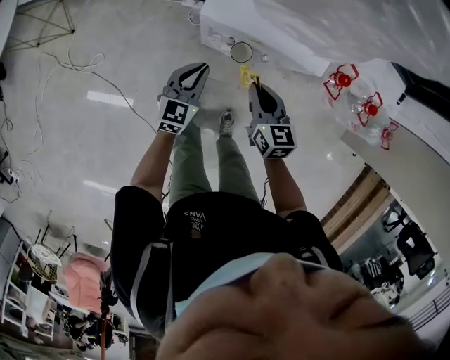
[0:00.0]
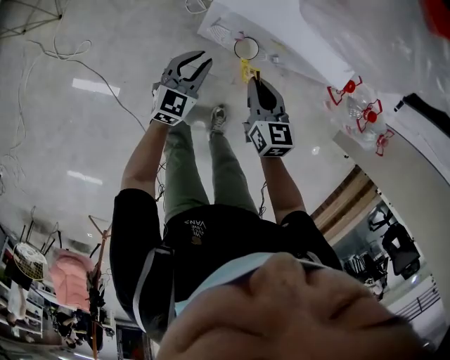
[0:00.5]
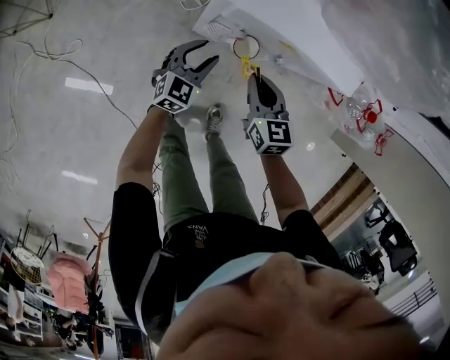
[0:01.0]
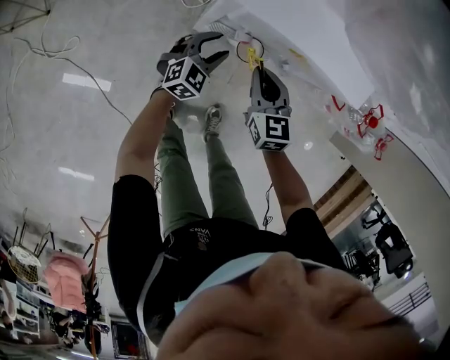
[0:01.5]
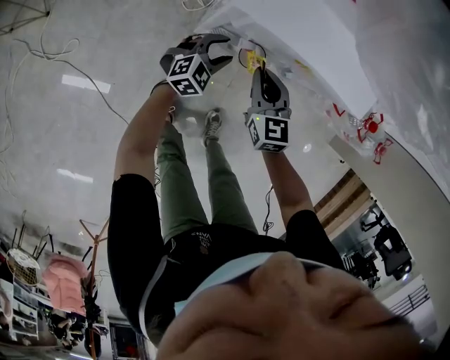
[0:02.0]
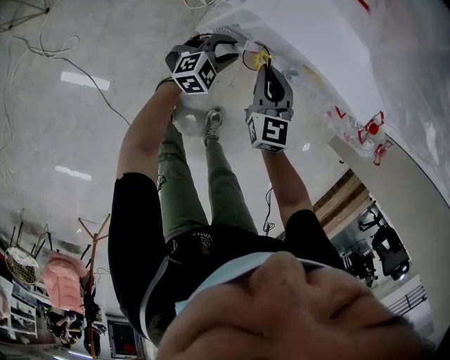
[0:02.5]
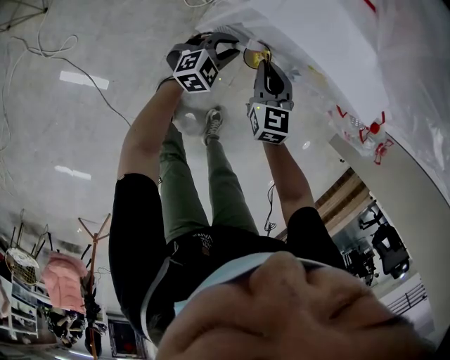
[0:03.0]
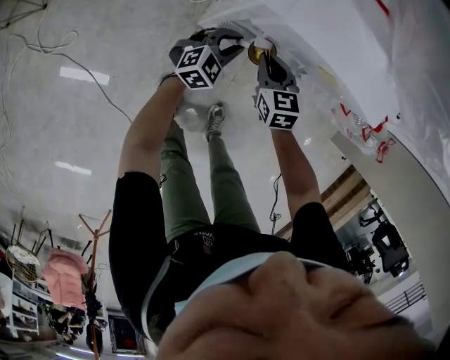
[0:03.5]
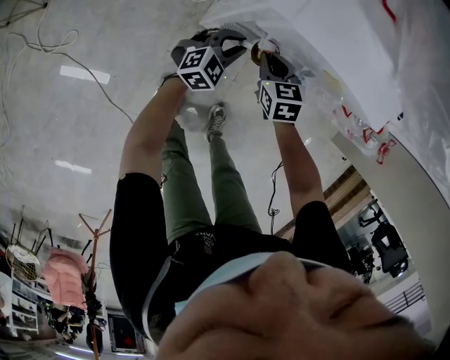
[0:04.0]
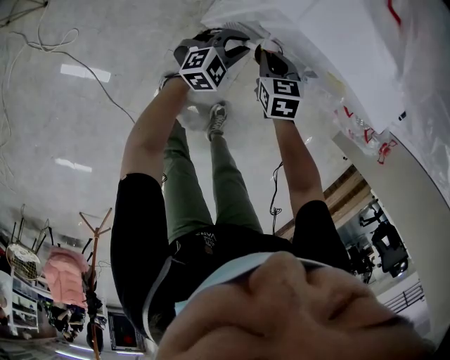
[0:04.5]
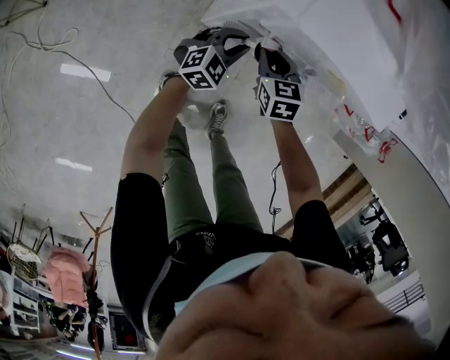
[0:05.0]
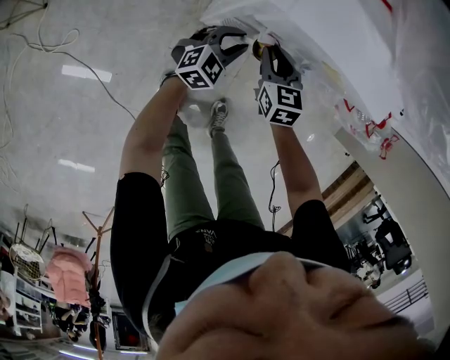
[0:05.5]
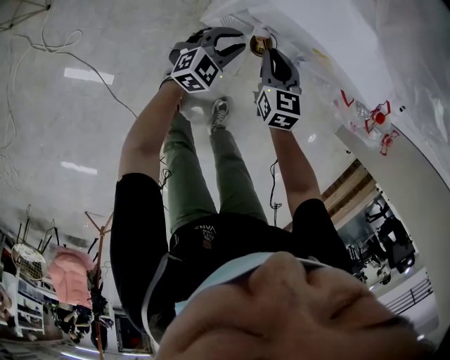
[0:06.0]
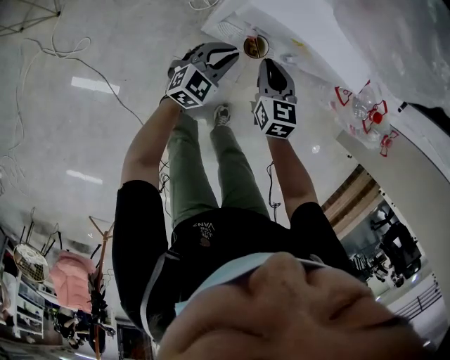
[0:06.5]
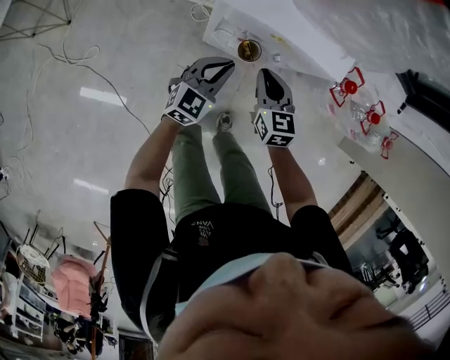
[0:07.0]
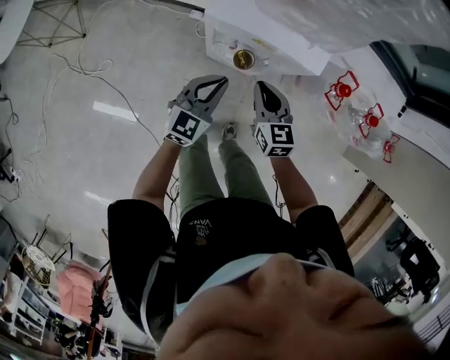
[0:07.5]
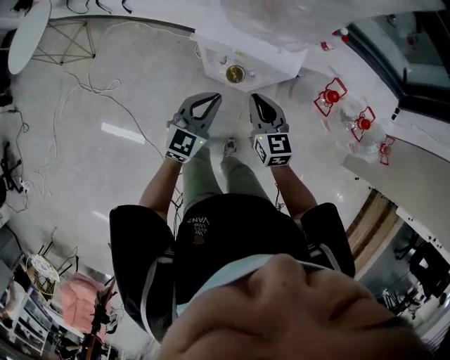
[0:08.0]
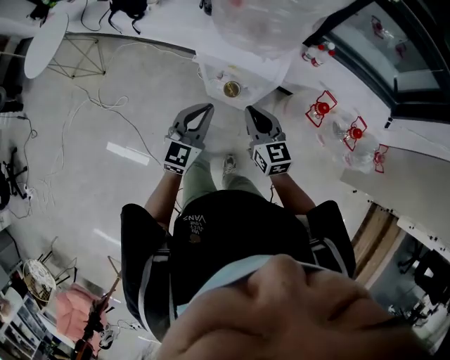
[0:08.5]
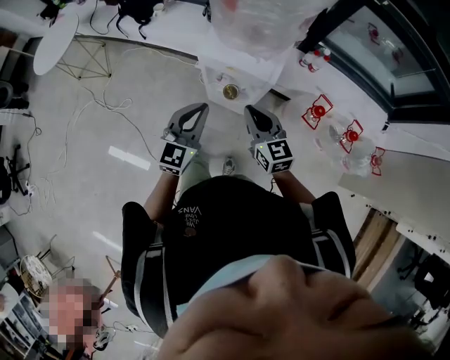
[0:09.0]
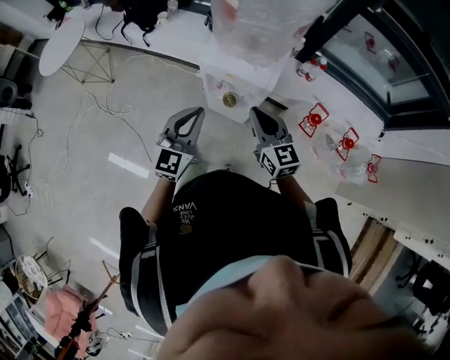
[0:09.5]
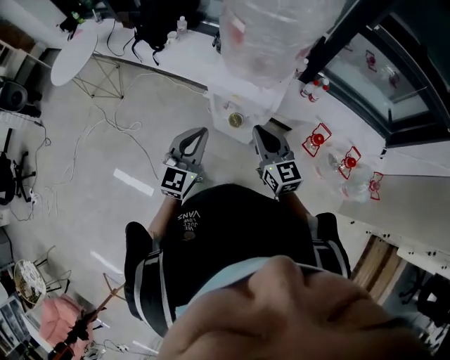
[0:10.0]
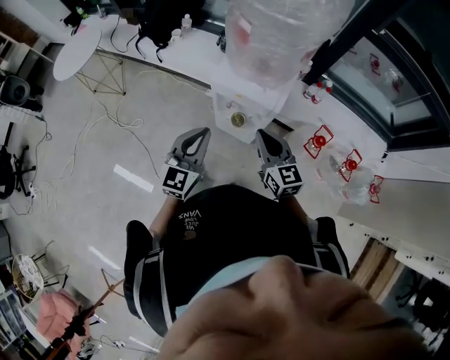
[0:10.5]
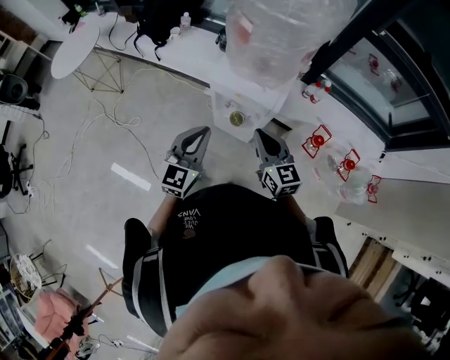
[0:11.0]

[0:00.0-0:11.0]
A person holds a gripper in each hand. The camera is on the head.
0:00.0 to 0:02.0: The right gripper goes approximately 15 cm downward and forward, while the left gripper is displaced downward by approximately 20 cm, swivels about 30 degrees, and opens its fingers.
0:02.0 to 0:03.5: The left gripper closes up. Meanwhile the right gripper goes some 5 cm downward.
0:03.5 to 0:05.5: The grippers stay close to where they were, moving slightly.
0:05.5 to 0:07.5: The right gripper travels upward and backward by some 25 cm, while the left gripper heads upward, covering some 25 cm, and rotates approximately 20 degrees.
0:07.5 to 0:09.0: Both grippers move upward, approximately 20 cm.
0:09.0 to 0:11.0: The two grippers go approximately 5 cm upward.

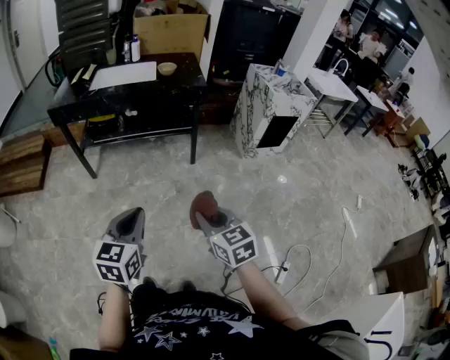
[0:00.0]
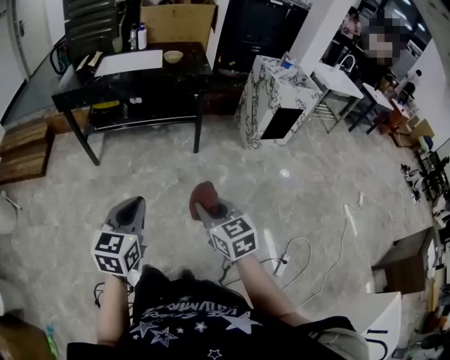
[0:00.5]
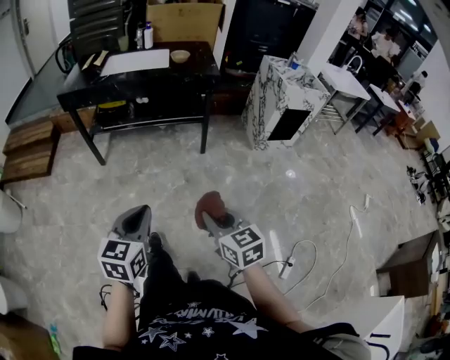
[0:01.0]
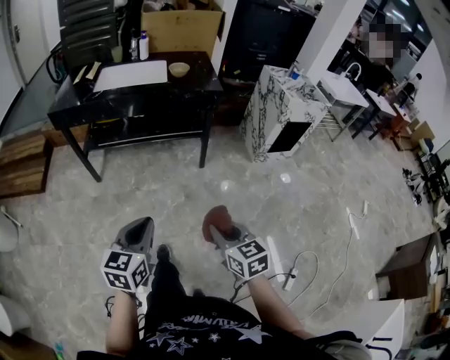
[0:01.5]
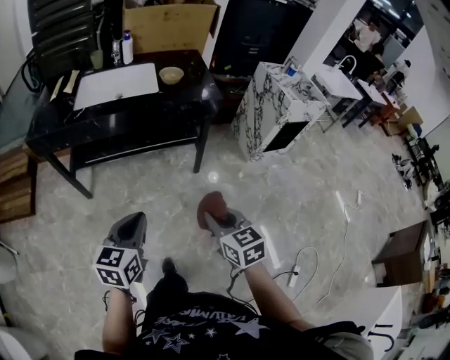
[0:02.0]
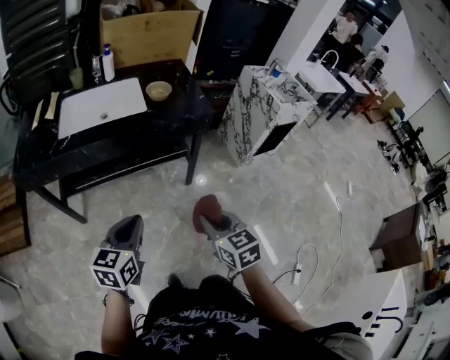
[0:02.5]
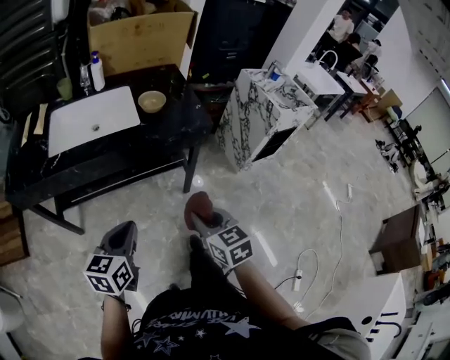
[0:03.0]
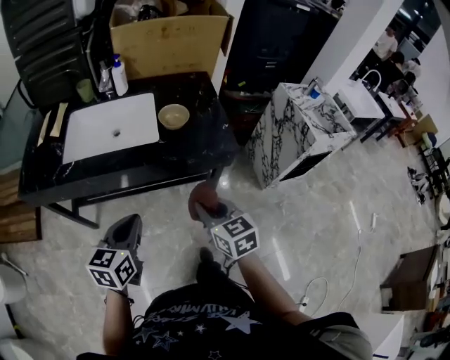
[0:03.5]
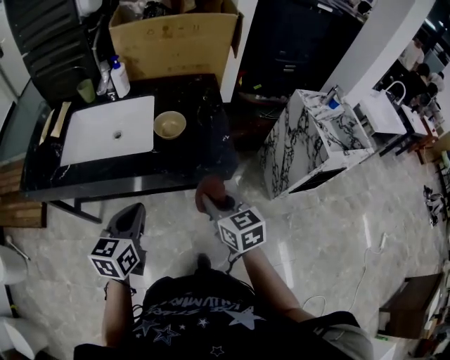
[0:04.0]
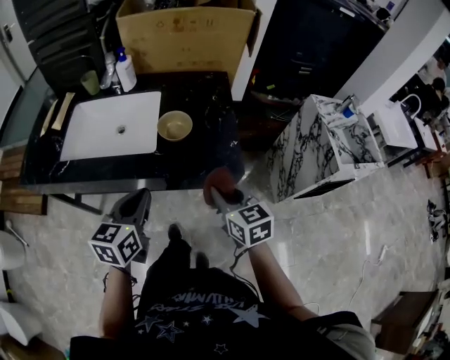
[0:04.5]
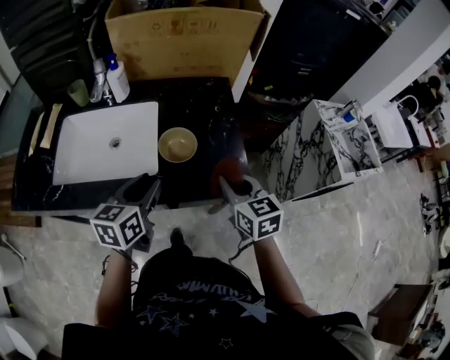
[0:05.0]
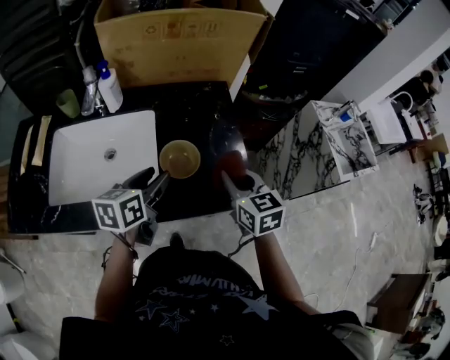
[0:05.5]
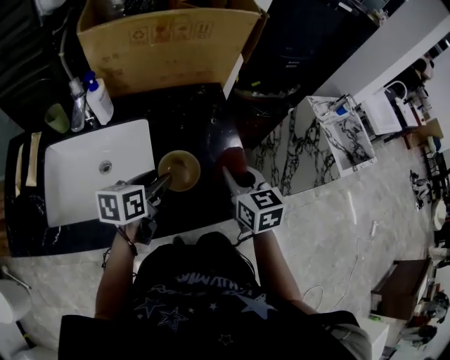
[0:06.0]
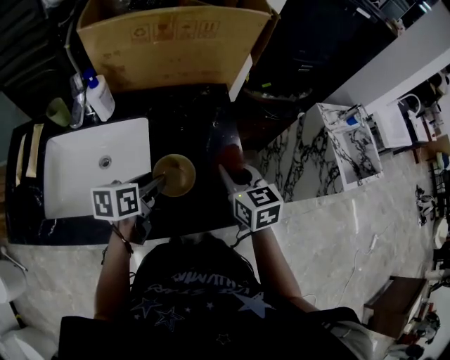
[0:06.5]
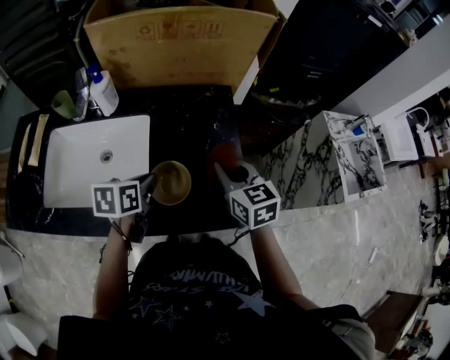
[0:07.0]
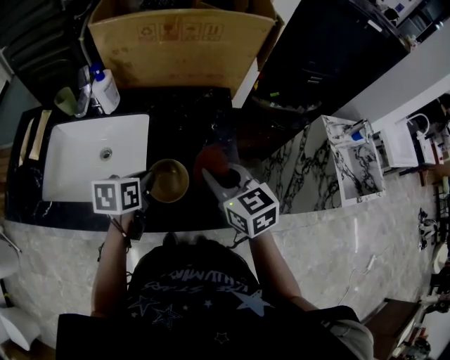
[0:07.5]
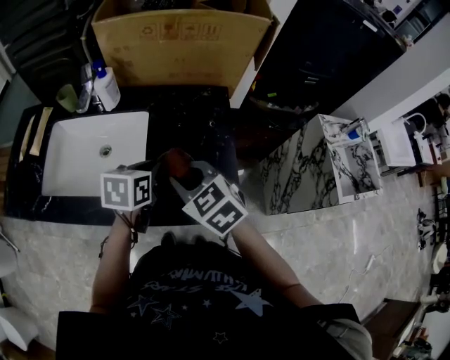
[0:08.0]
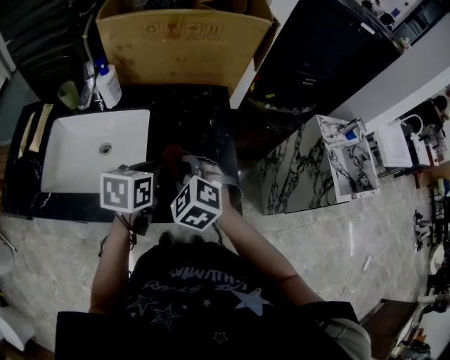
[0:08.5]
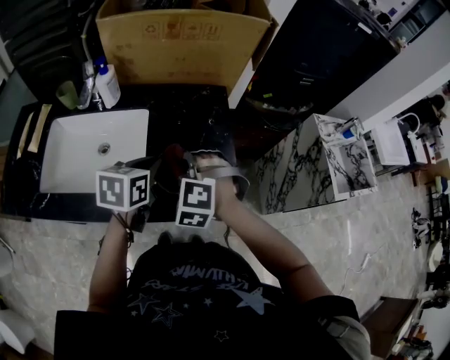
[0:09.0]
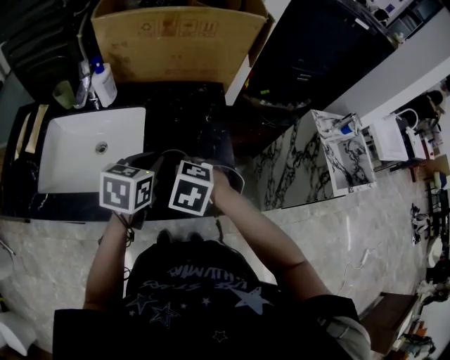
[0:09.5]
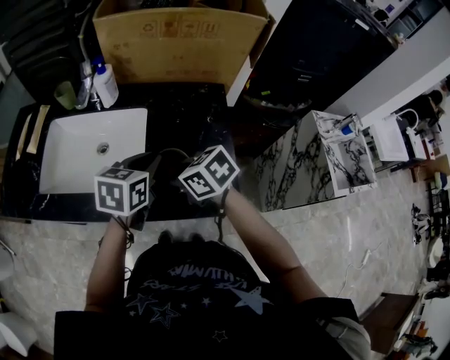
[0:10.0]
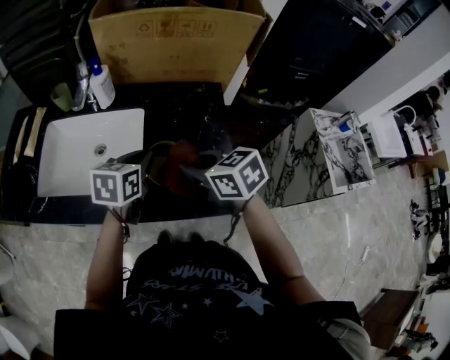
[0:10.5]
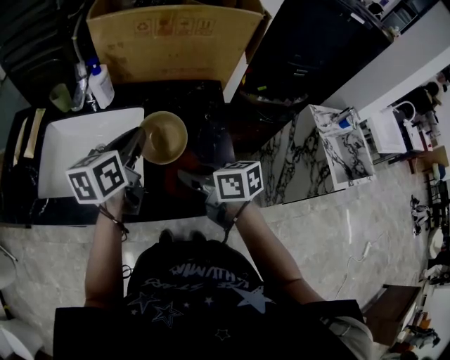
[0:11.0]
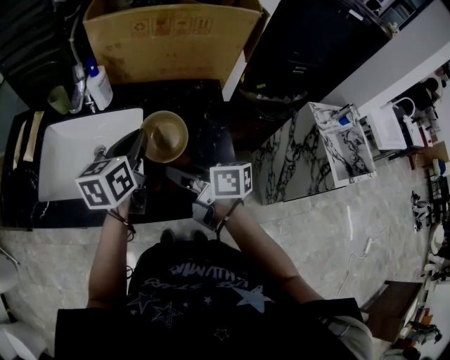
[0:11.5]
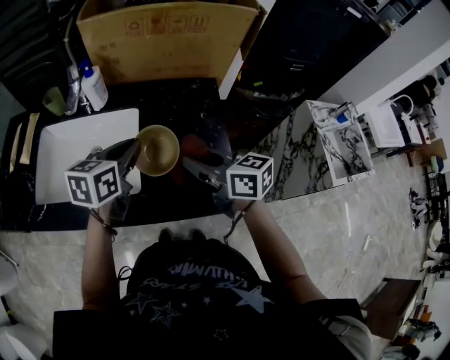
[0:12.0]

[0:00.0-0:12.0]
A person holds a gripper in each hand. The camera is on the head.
0:00.0 to 0:02.0: The grippers both shift forward by approximately 25 cm.
0:02.0 to 0:04.0: The two grippers go about 35 cm forward.
0:04.0 to 0:06.0: The right gripper heads forward, covering roughly 25 cm. The left gripper travels forward and downward by approximately 30 cm, rotates roughly 30 degrees, and opens up.
0:06.0 to 0:08.0: The right gripper moves some 10 cm, and changes its angle by some 40 degrees; the left gripper closes up.
0:08.0 to 0:10.0: The right gripper ends up roughly 5 cm from where it was, and turns by approximately 30 degrees.
0:10.0 to 0:12.0: The left gripper moves approximately 5 cm. The right gripper is displaced to the right by some 10 cm, and swivels some 30 degrees.

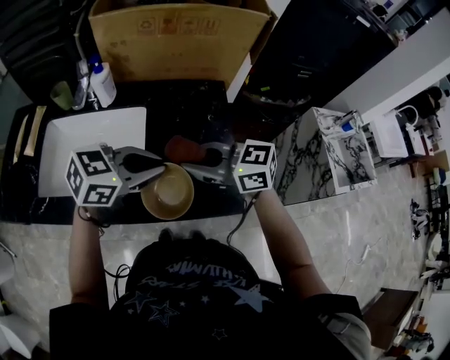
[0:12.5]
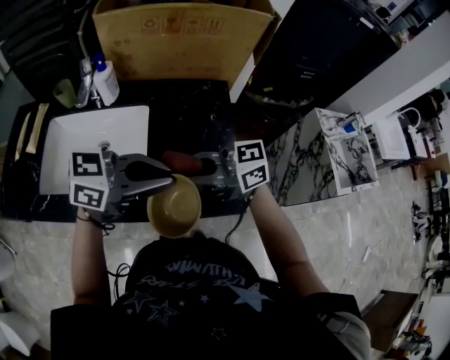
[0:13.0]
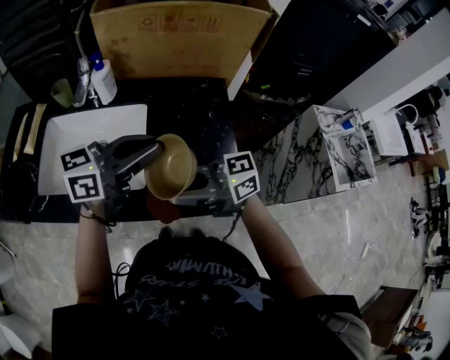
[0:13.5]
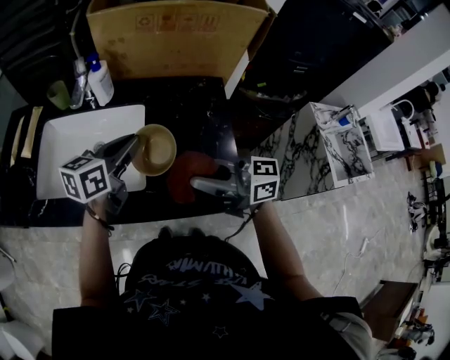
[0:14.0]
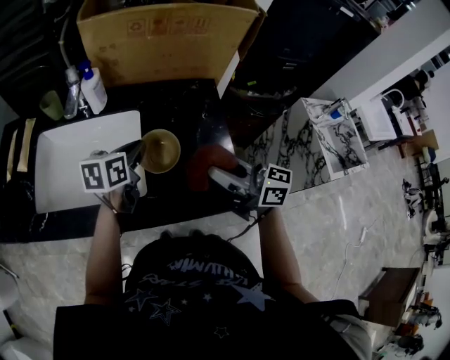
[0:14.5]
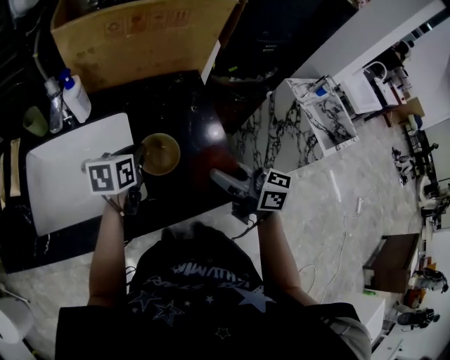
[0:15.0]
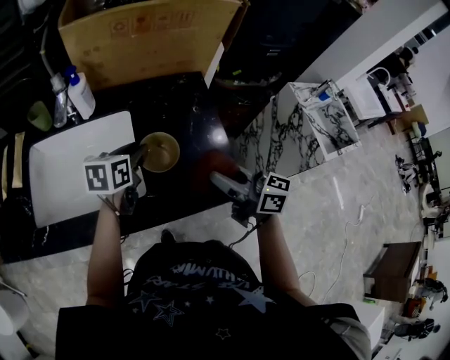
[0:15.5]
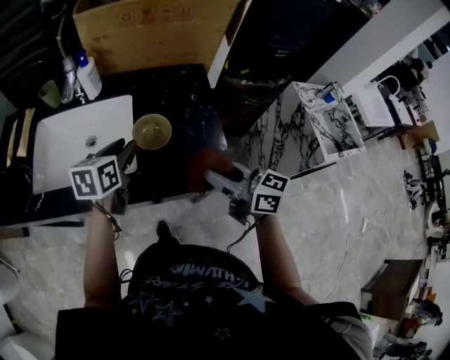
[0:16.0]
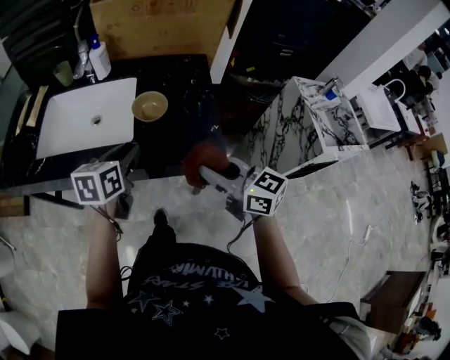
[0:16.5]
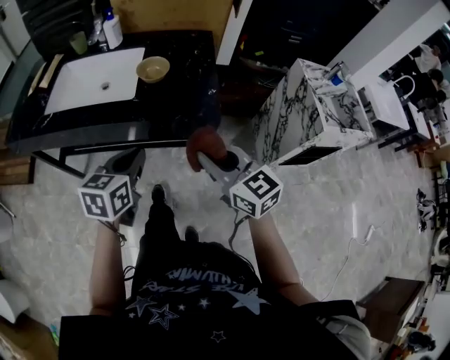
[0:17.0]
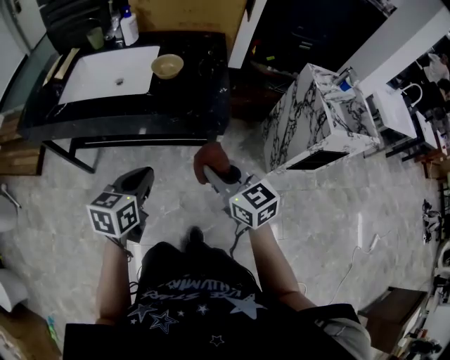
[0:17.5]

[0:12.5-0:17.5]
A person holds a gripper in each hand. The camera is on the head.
0:12.5 to 0:15.0: The left gripper ends up about 15 cm from where it was, and changes its angle by approximately 40 degrees, while the right gripper shifts by approximately 10 cm, and changes its angle by about 40 degrees.
0:15.0 to 0:17.5: The two grippers go roughly 35 cm backward. The left gripper opens and closes again; the right gripper swivels some 30 degrees.
